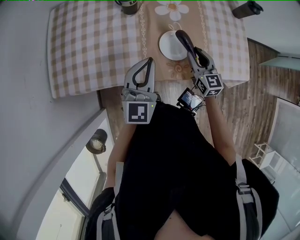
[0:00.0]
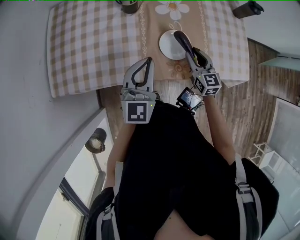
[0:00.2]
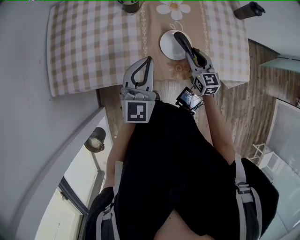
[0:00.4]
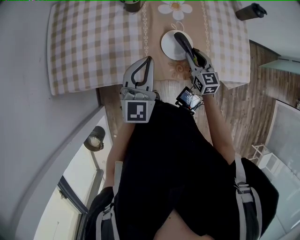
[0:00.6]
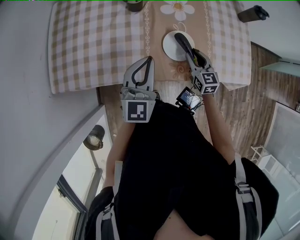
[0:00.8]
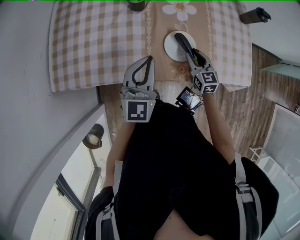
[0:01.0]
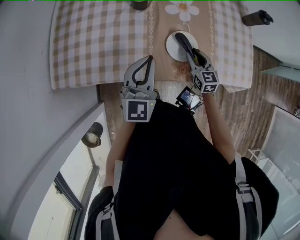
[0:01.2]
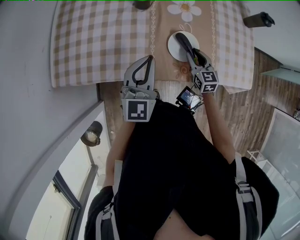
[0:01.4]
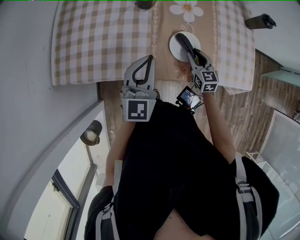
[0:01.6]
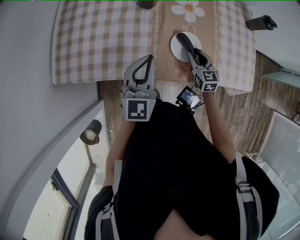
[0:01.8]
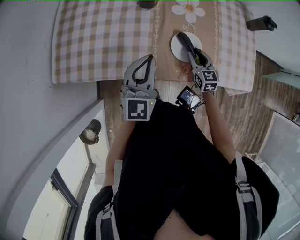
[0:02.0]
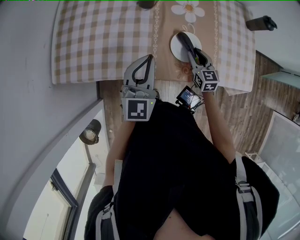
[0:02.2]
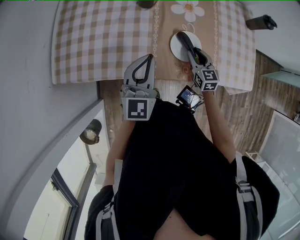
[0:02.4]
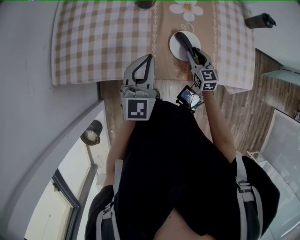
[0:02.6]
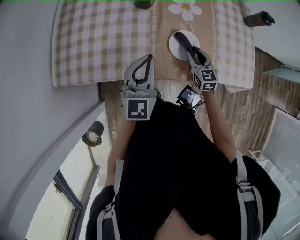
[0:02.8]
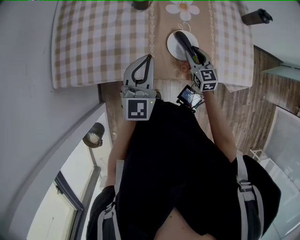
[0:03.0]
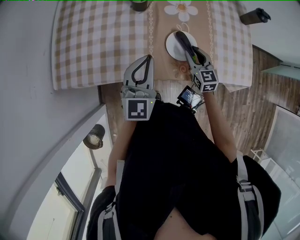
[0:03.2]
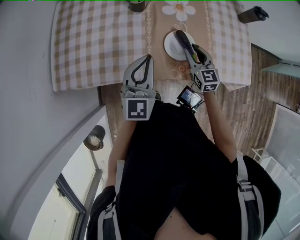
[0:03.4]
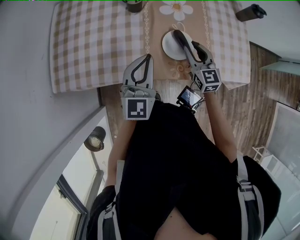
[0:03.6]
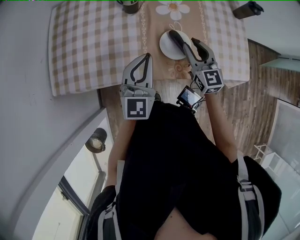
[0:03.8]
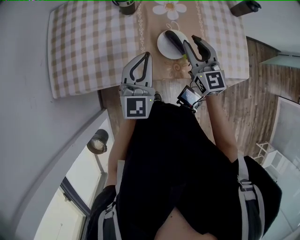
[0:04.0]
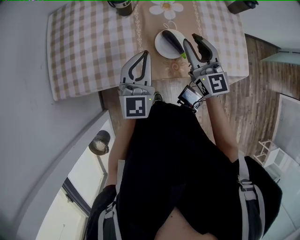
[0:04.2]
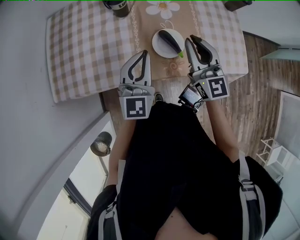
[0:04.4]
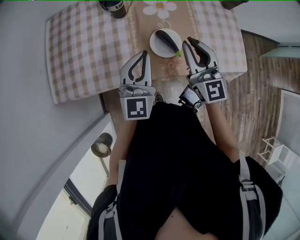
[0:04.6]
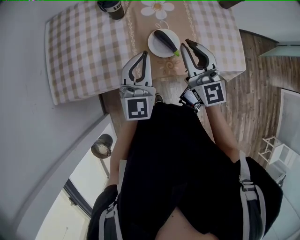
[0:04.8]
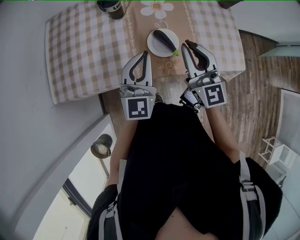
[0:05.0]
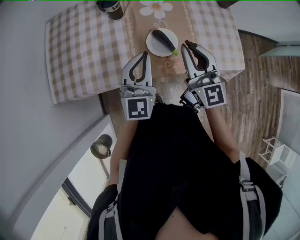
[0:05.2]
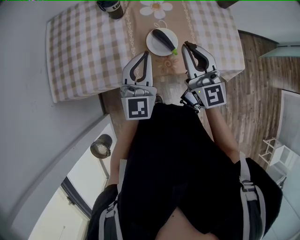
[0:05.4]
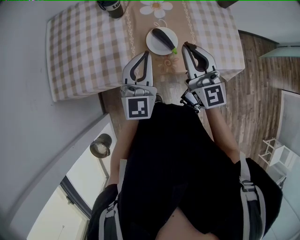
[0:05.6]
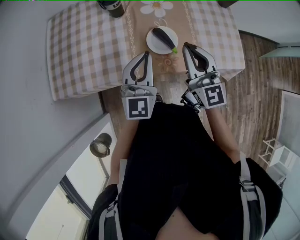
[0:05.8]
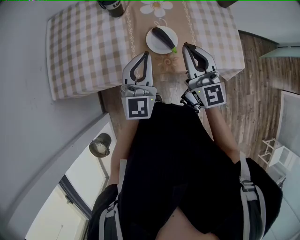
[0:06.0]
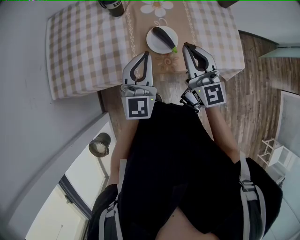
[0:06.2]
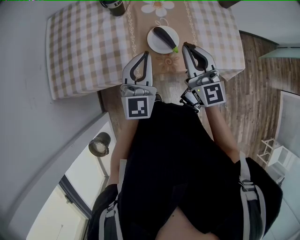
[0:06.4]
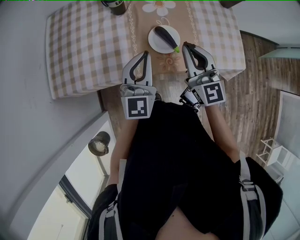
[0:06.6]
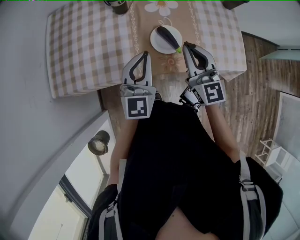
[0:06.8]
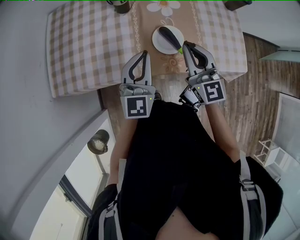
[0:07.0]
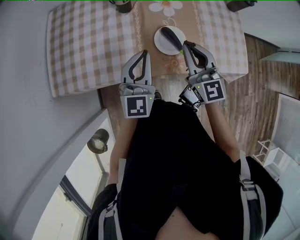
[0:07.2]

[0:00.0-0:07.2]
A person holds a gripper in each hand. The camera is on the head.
0:00.0 to 0:01.4: The right gripper goes approximately 5 cm downward.
0:01.4 to 0:02.8: Both grippers stay put.
0:02.8 to 0:04.4: The left gripper moves to the right, roughly 5 cm; the right gripper goes roughly 20 cm upward, and turns by roughly 30 degrees.
0:04.4 to 0:05.8: The right gripper goes about 5 cm backward.
0:05.8 to 0:07.2: The left gripper moves approximately 5 cm. Meanwhile the right gripper shifts by about 5 cm.

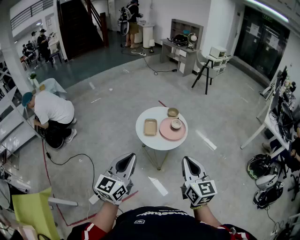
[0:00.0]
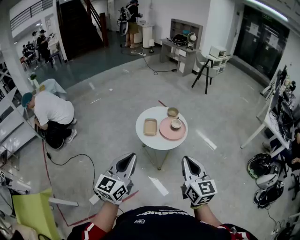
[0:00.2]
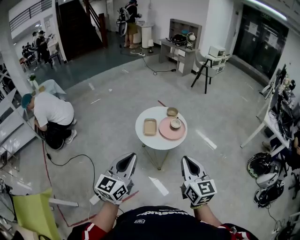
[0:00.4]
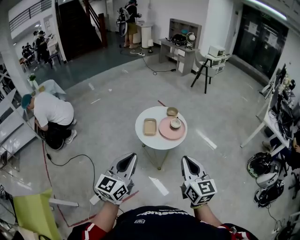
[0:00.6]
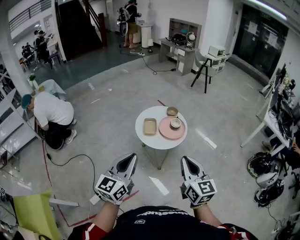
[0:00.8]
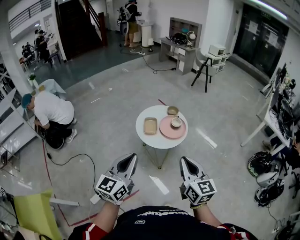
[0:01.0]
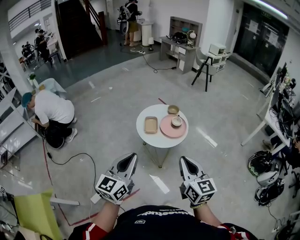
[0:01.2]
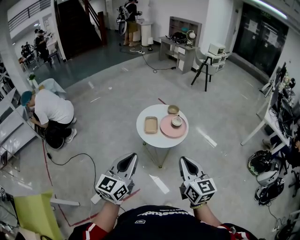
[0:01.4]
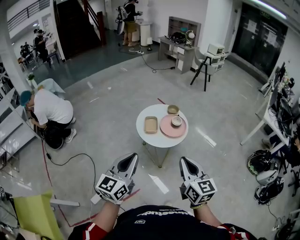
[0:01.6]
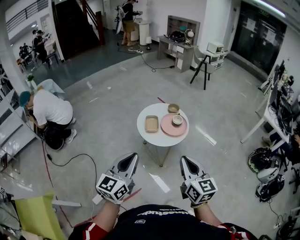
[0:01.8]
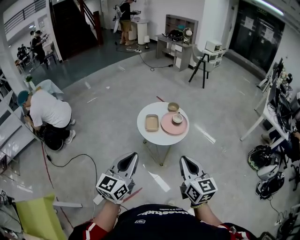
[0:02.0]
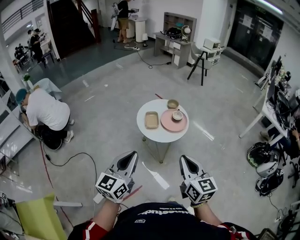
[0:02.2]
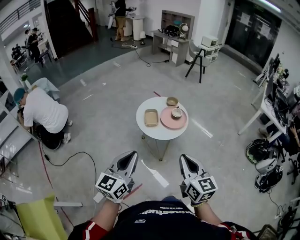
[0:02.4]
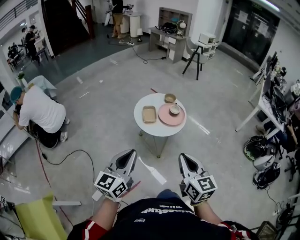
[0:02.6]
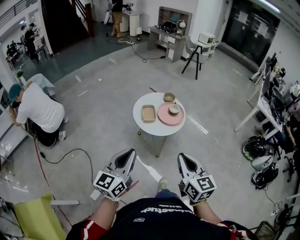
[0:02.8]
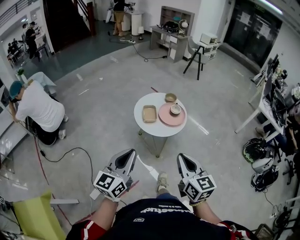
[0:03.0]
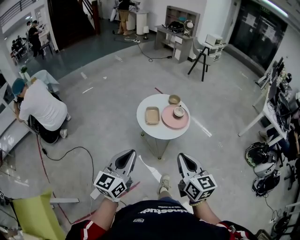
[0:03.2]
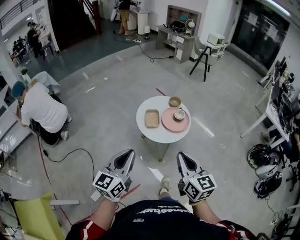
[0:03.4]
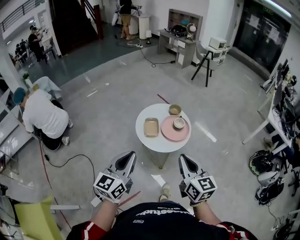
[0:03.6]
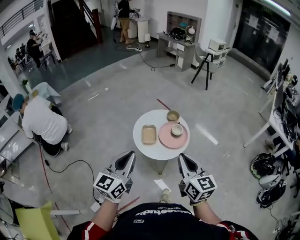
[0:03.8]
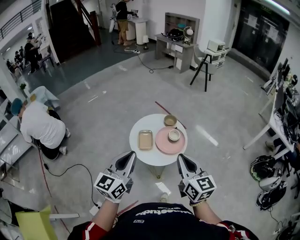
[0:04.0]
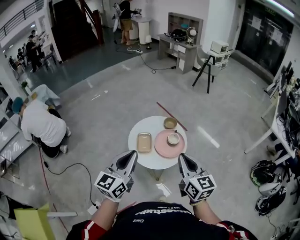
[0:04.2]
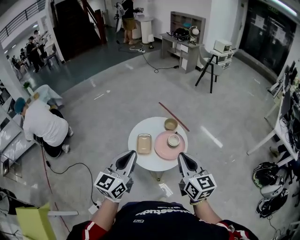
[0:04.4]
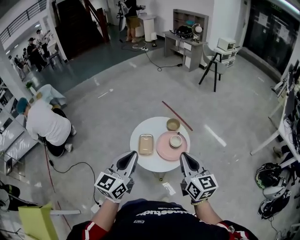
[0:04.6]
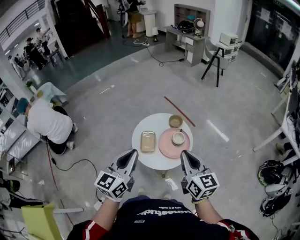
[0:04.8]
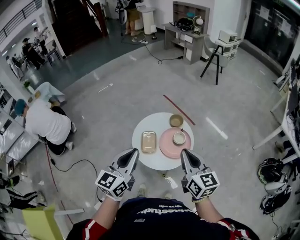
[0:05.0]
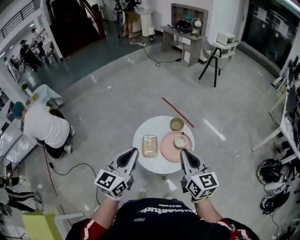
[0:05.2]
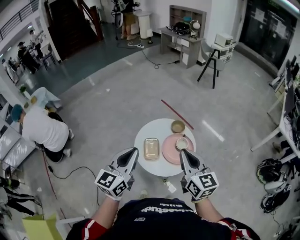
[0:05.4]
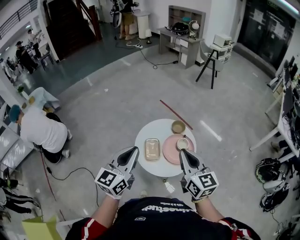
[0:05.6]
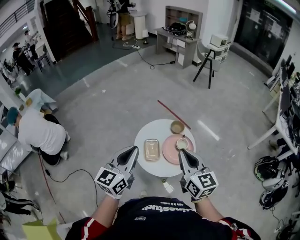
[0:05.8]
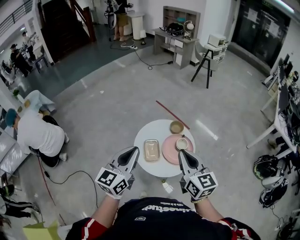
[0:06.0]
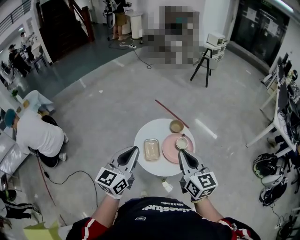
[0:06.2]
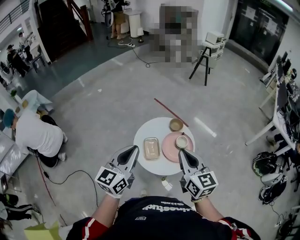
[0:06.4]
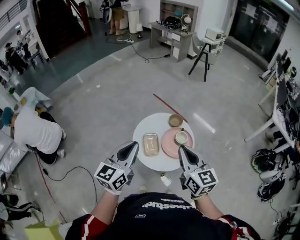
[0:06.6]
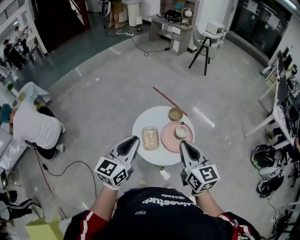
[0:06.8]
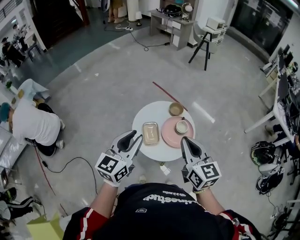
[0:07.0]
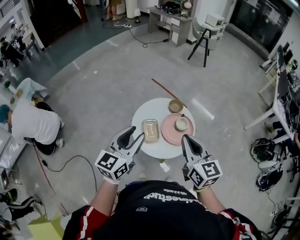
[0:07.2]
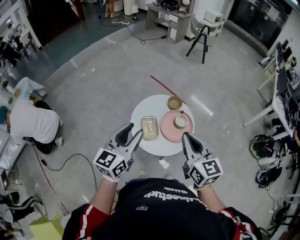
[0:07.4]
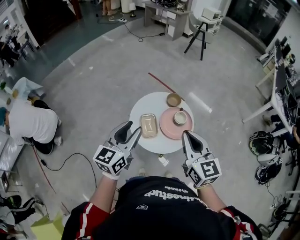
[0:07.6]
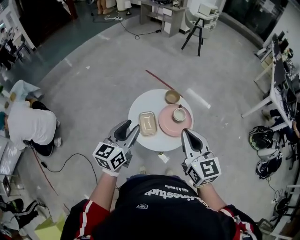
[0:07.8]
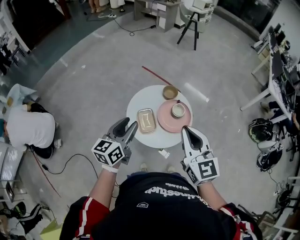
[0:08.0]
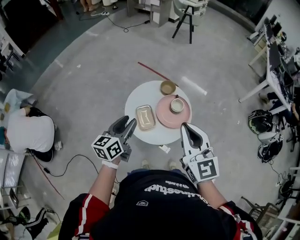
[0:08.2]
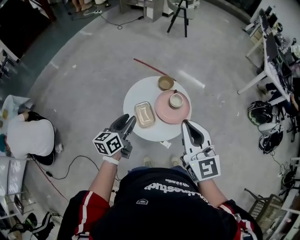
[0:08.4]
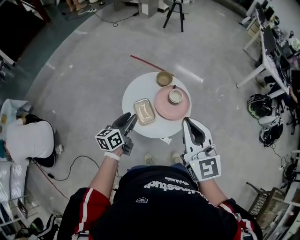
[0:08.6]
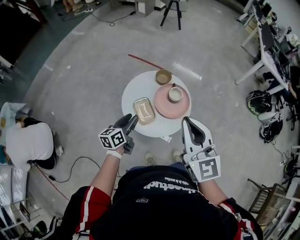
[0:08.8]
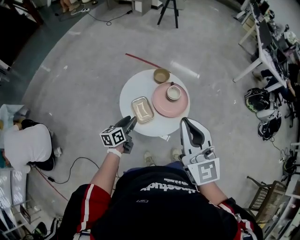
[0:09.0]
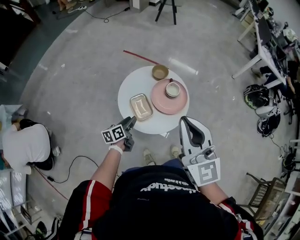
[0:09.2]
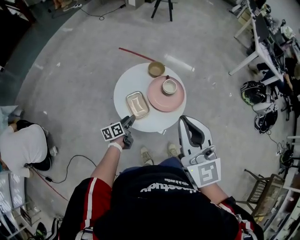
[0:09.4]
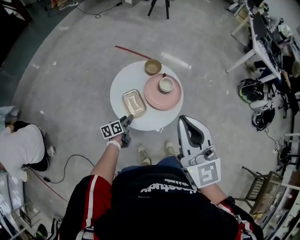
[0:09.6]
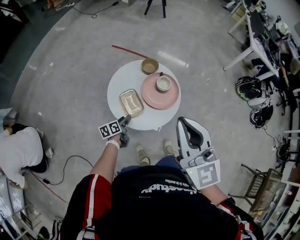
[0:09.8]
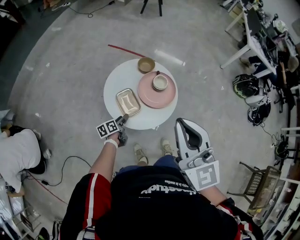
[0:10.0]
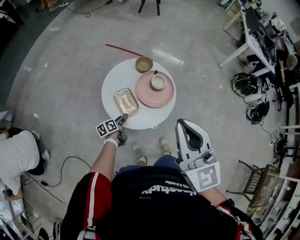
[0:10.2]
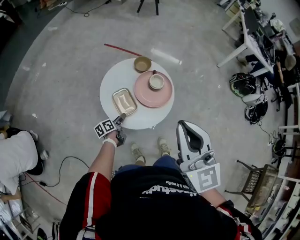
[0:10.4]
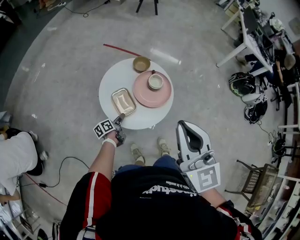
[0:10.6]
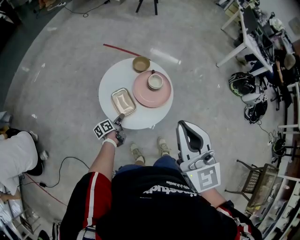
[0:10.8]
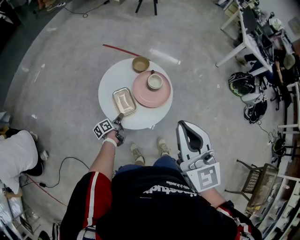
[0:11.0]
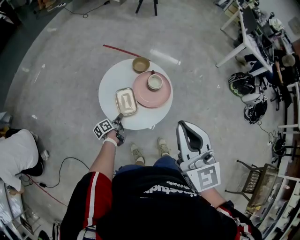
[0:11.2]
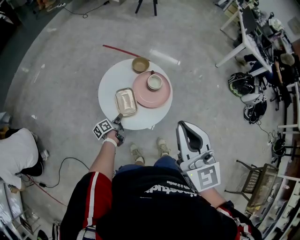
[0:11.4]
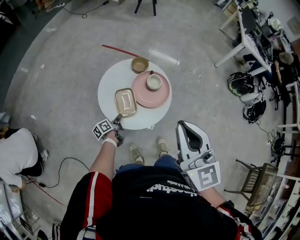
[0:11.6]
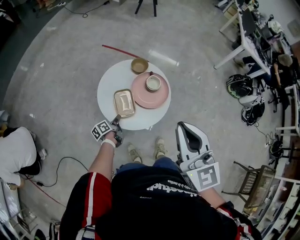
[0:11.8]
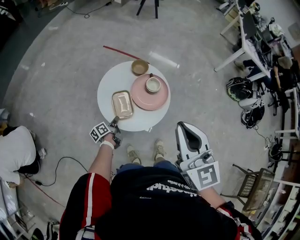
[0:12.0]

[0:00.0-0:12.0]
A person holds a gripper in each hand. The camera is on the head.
0:00.0 to 0:01.6: There are only small adjustments of the grippers.
0:01.6 to 0:03.0: The two grippers go some 5 cm to the left.
0:03.0 to 0:04.4: The two grippers go roughly 35 cm forward and to the right.
0:04.4 to 0:06.0: Both grippers travel together to the left and forward, about 15 cm.
0:06.0 to 0:07.6: The left gripper shifts some 5 cm downward, and opens its fingers.
0:07.6 to 0:09.0: The left gripper heads downward, covering about 25 cm, and changes its angle by about 40 degrees. The right gripper swivels some 20 degrees.
0:09.0 to 0:10.4: The left gripper heads downward, covering roughly 15 cm, and turns by about 30 degrees.
0:10.4 to 0:12.0: The left gripper closes up.

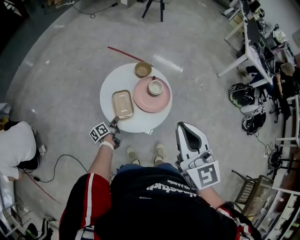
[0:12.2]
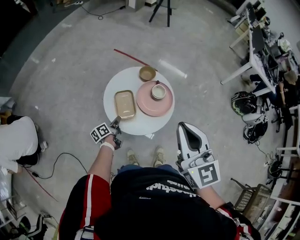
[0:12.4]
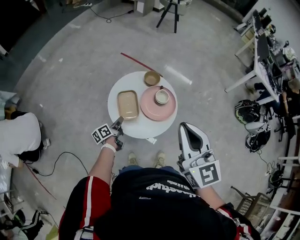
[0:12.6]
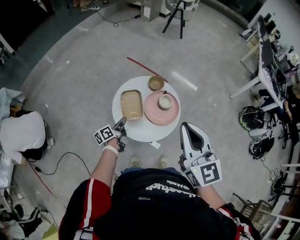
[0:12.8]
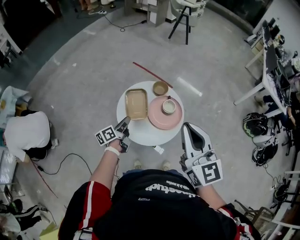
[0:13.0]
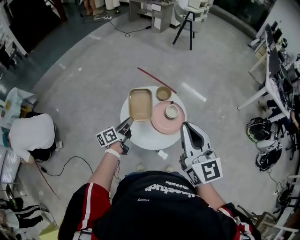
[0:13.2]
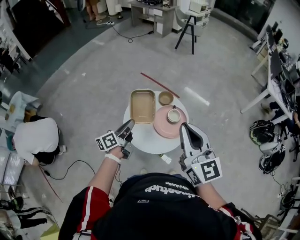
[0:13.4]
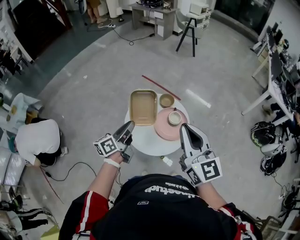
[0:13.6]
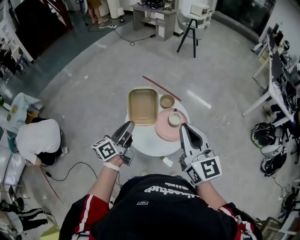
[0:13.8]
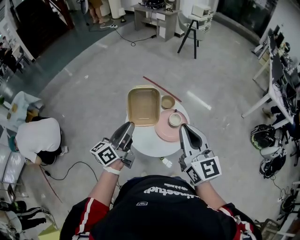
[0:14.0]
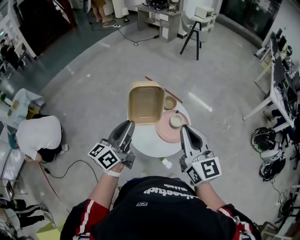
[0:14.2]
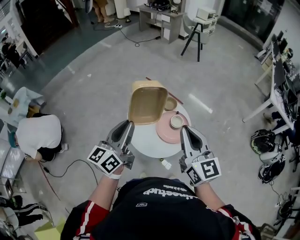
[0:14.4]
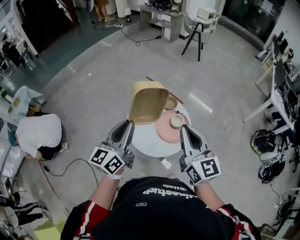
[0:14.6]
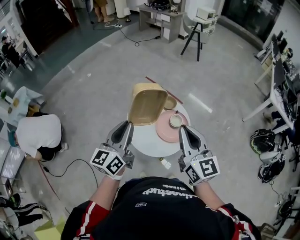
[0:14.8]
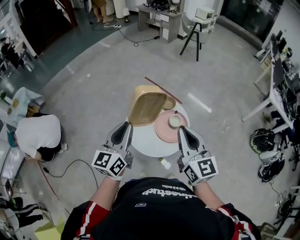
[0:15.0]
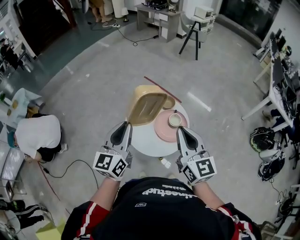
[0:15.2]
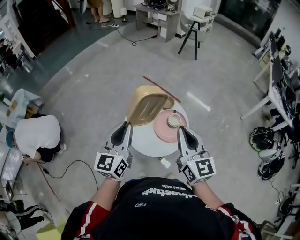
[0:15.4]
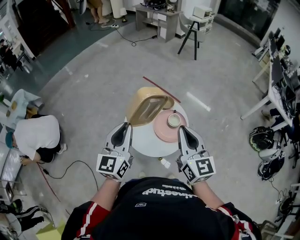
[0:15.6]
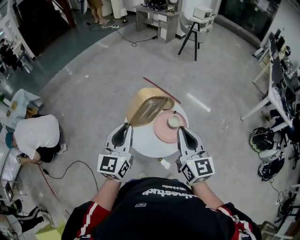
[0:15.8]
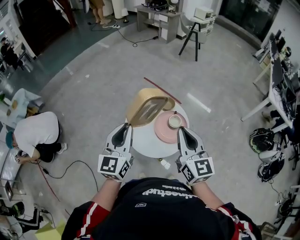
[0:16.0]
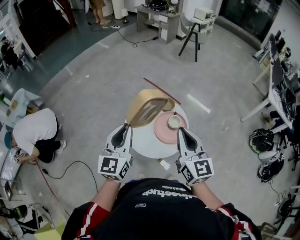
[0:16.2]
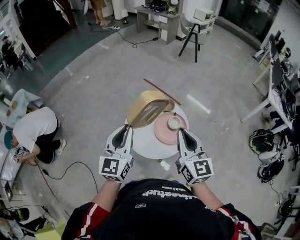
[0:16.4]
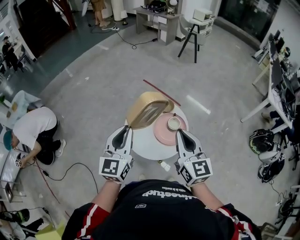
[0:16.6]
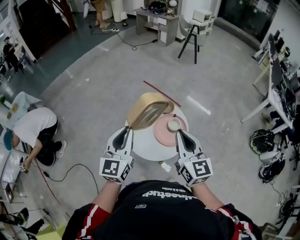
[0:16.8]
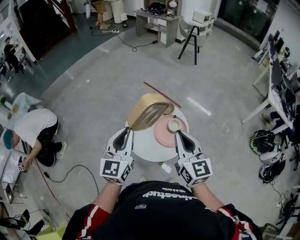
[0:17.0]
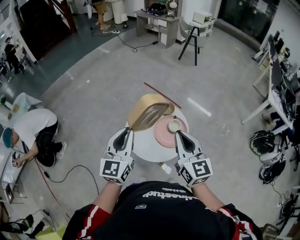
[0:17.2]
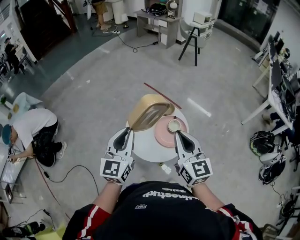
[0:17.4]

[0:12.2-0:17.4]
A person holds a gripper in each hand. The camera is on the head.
0:12.2 to 0:14.0: The left gripper is displaced upward by roughly 40 cm, and angles its fingers upward, by about 30 degrees. Meanwhile the right gripper is displaced forward by roughly 5 cm.
0:14.0 to 0:15.6: The left gripper ends up about 5 cm from where it was, and swivels roughly 40 degrees.
0:15.6 to 0:17.4: The grippers make only small movements.
